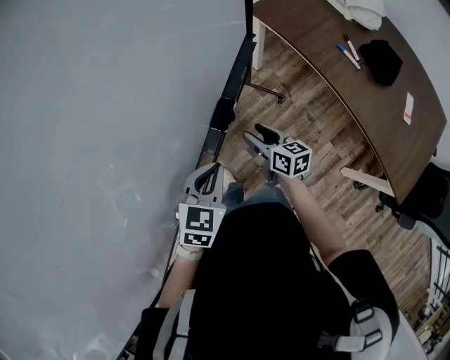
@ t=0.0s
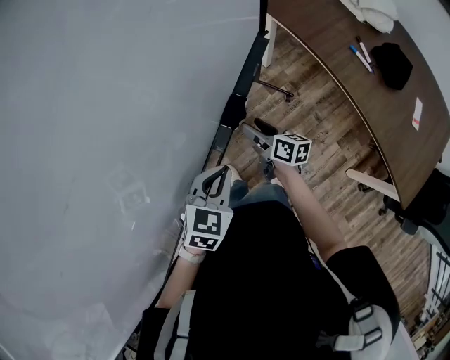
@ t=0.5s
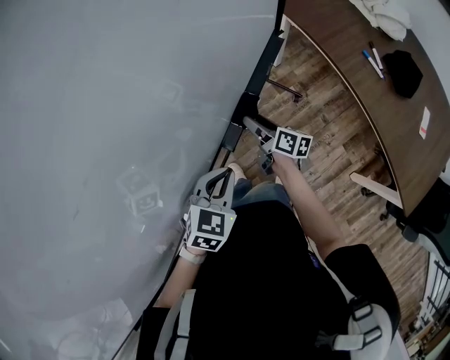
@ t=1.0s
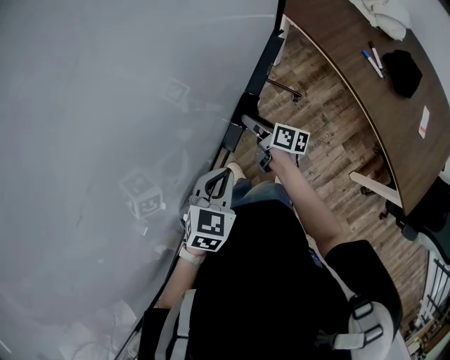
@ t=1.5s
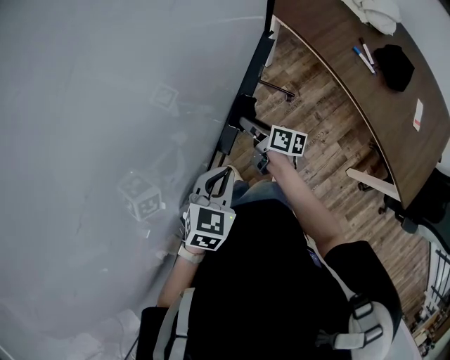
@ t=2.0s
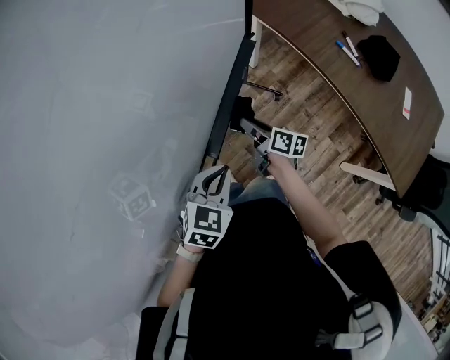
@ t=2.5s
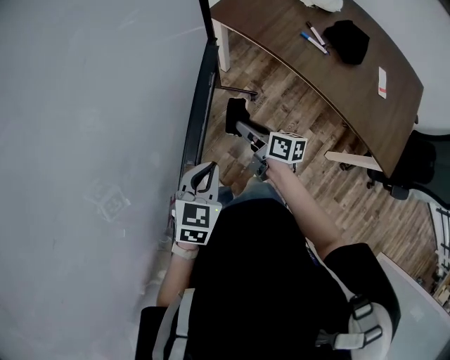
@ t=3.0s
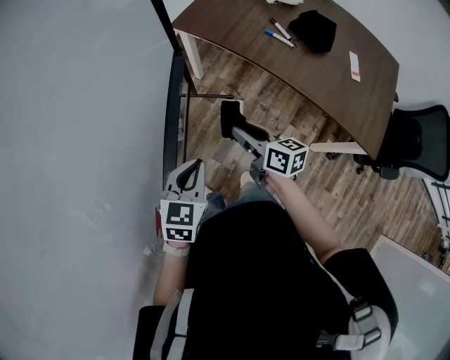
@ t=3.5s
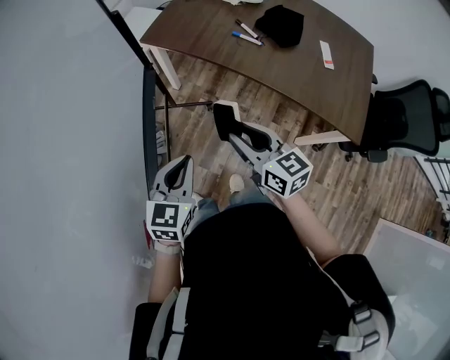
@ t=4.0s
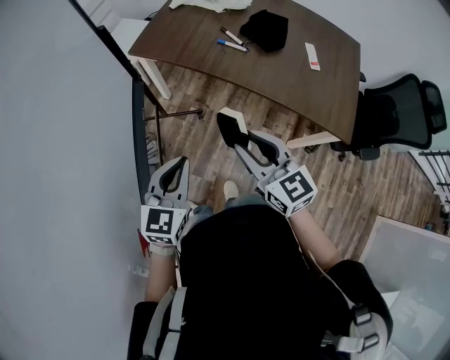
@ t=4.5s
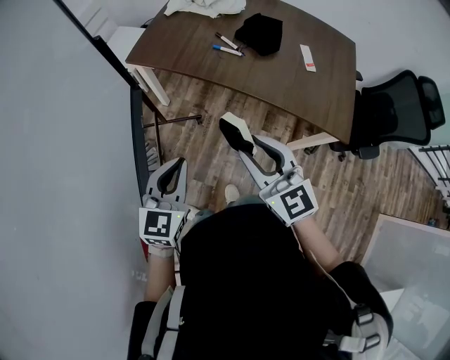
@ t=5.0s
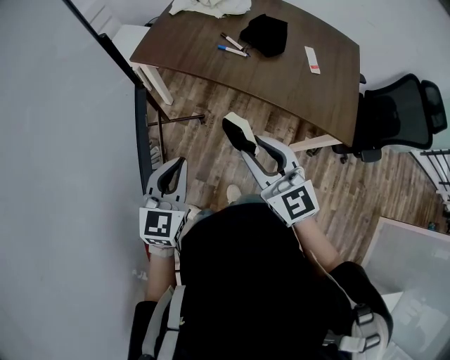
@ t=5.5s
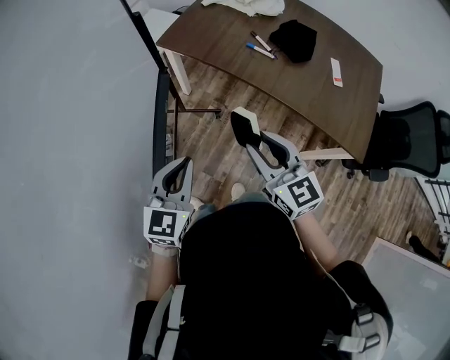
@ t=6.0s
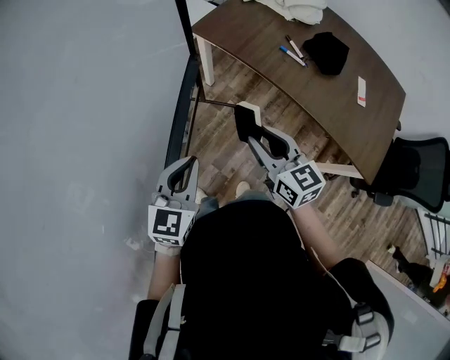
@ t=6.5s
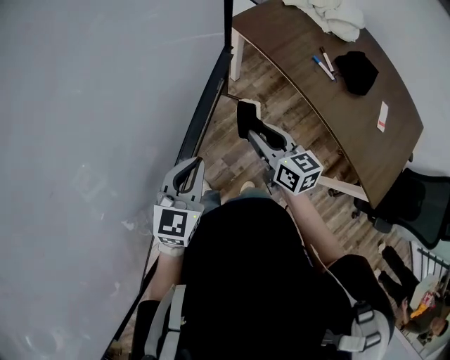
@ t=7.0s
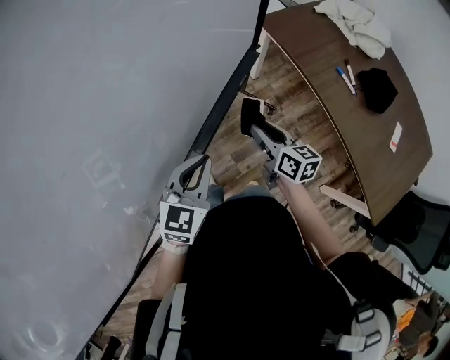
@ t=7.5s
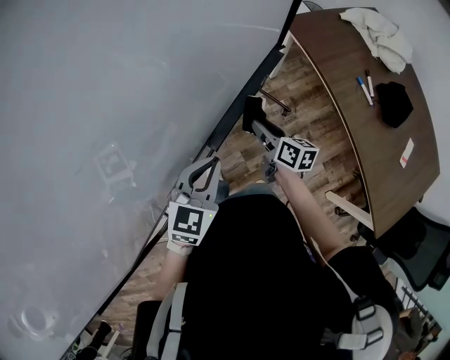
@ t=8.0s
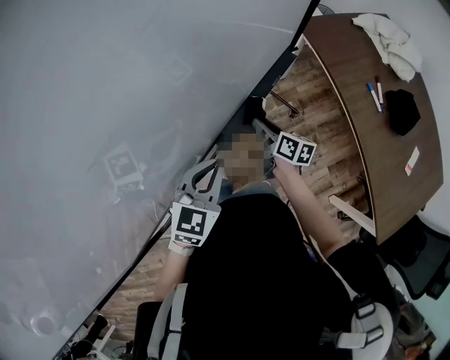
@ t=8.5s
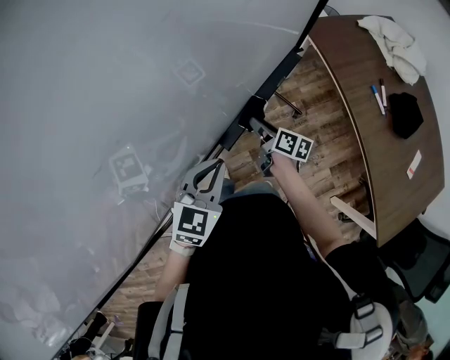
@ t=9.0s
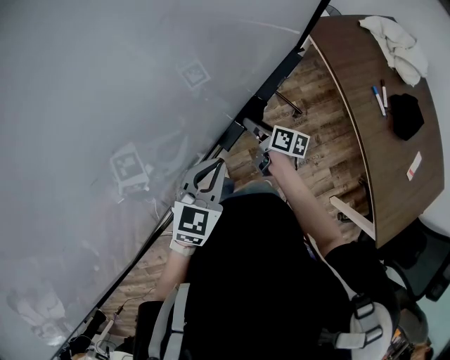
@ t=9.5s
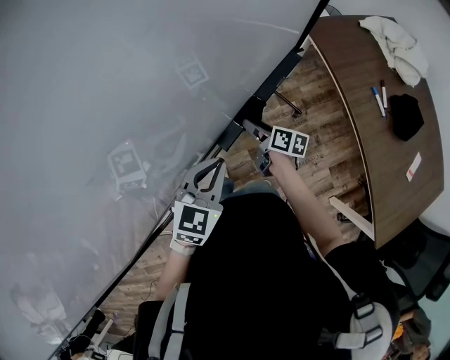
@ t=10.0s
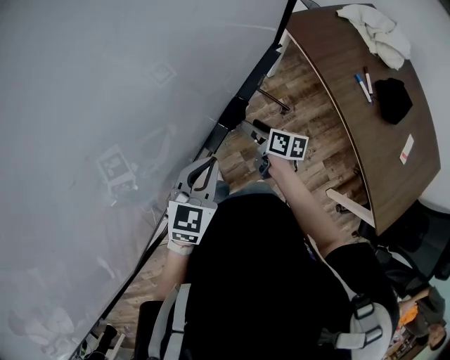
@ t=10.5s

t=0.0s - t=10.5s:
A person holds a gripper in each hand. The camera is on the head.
t=0.0s - t=2.0s: The right gripper goes some 10 cm to the left and forward, and swivels some 30 degrees.
t=2.0s - t=4.0s: The right gripper moves to the right and upward, approximately 30 cm, and rotates roughly 50 degrees. The left gripper shifts about 15 cm to the right, and swivels some 20 degrees.
t=4.0s - t=6.5s: The left gripper moves to the left, approximately 5 cm.
t=6.5s - t=8.5s: The right gripper shifts about 25 cm downward, to the left and forward, and turns by about 40 degrees; the left gripper travels to the left by roughly 10 cm, and turns by approximately 20 degrees.
t=8.5s - t=10.5s: The right gripper opens up.

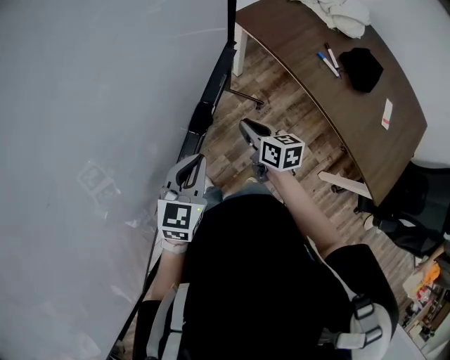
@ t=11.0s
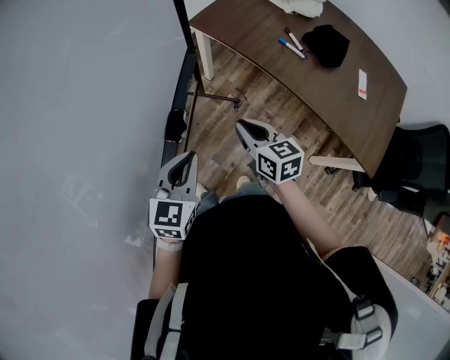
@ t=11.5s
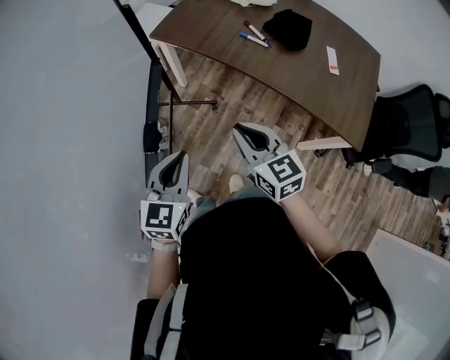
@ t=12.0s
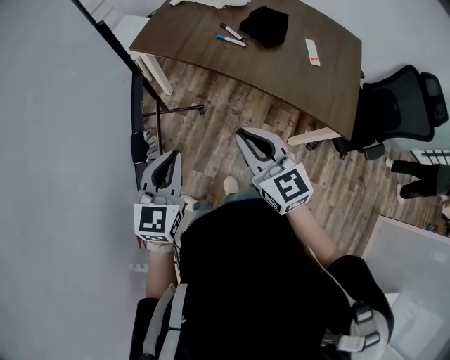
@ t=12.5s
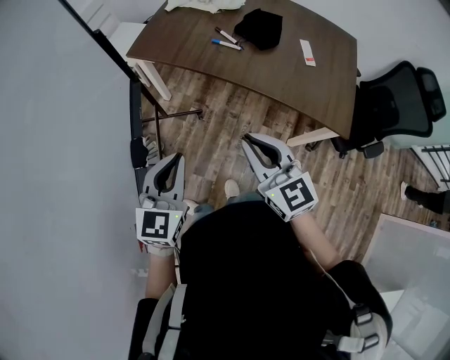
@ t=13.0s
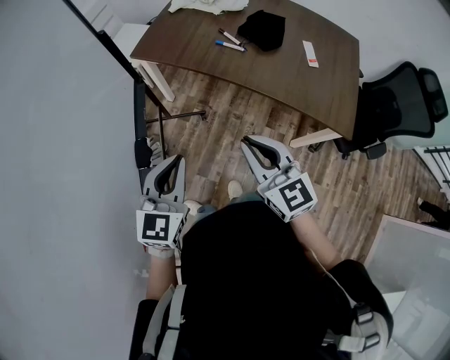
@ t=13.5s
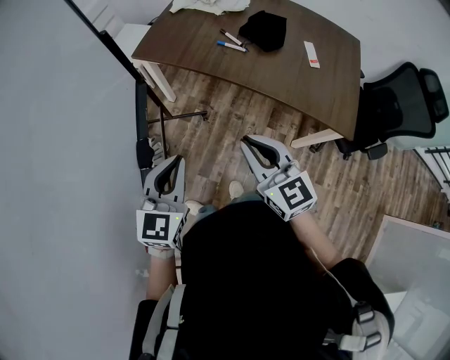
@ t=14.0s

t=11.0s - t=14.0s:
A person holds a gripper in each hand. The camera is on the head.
t=11.0s - t=12.5s: The left gripper moves approximately 15 cm, and turns by roughly 20 degrees, while the right gripper ends up roughly 25 cm from where it was, and swivels approximately 40 degrees.
t=12.5s - t=14.0s: The grippers stay close to where they were, moving slightly.

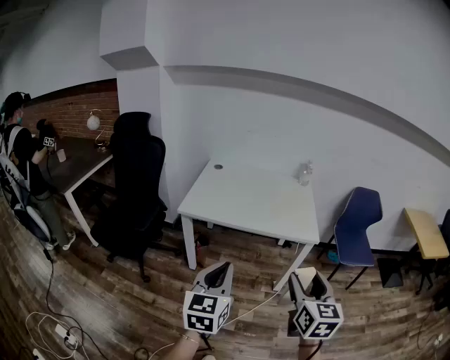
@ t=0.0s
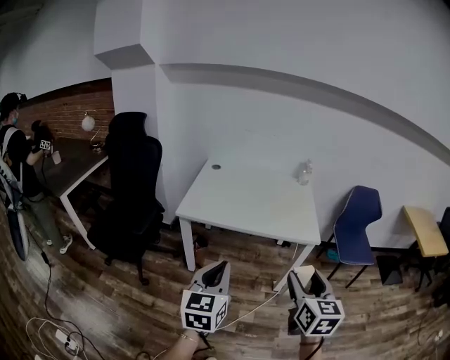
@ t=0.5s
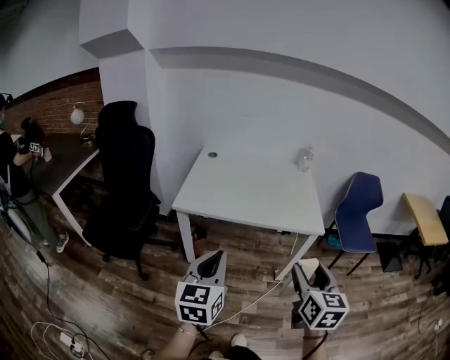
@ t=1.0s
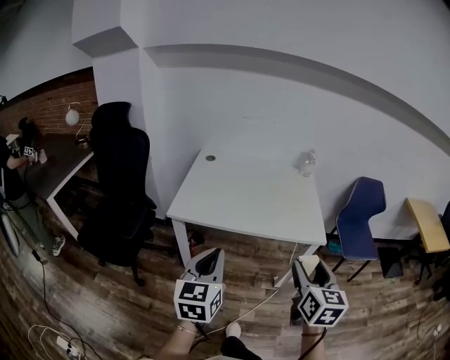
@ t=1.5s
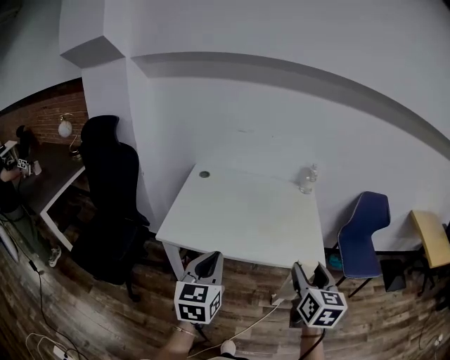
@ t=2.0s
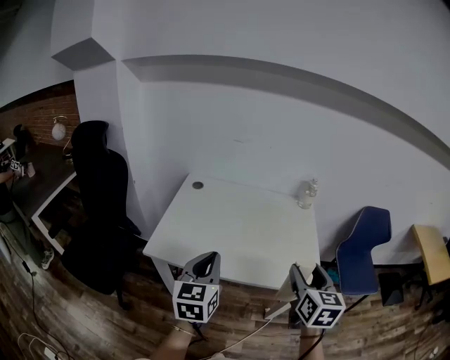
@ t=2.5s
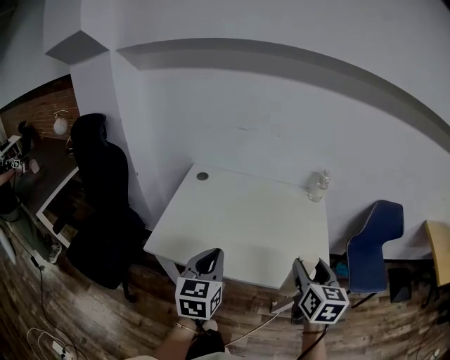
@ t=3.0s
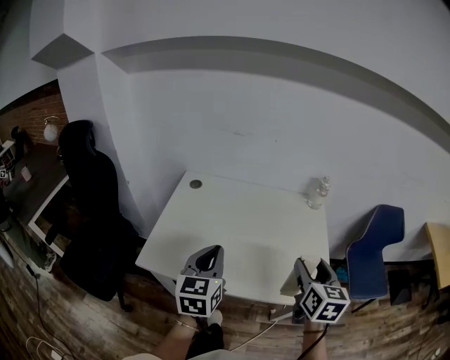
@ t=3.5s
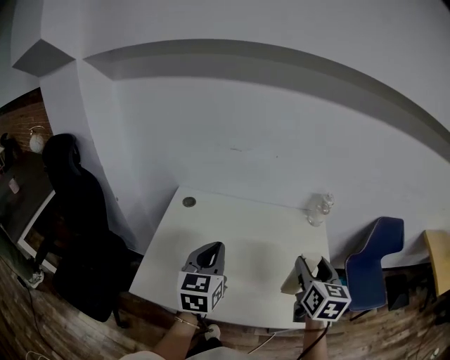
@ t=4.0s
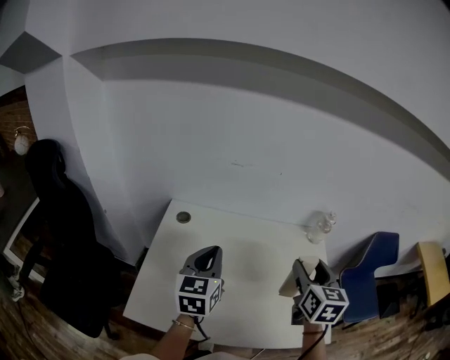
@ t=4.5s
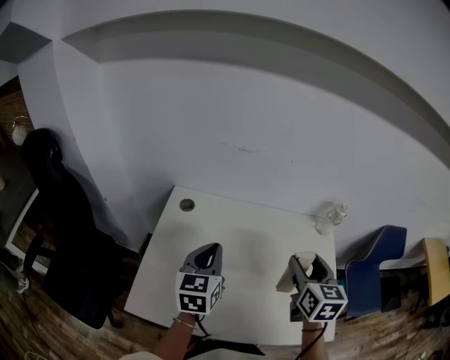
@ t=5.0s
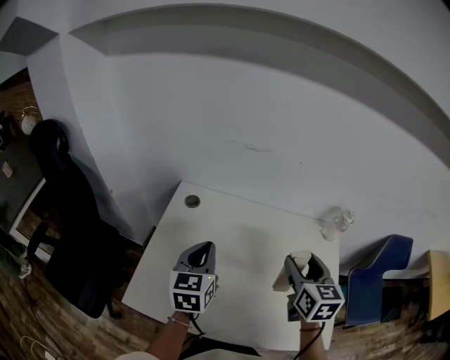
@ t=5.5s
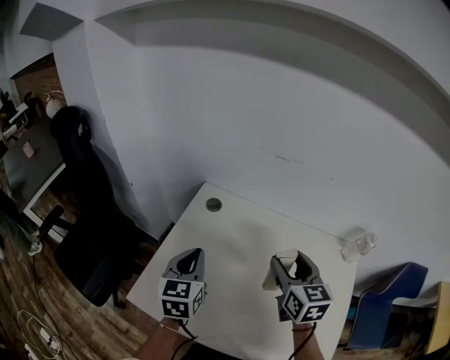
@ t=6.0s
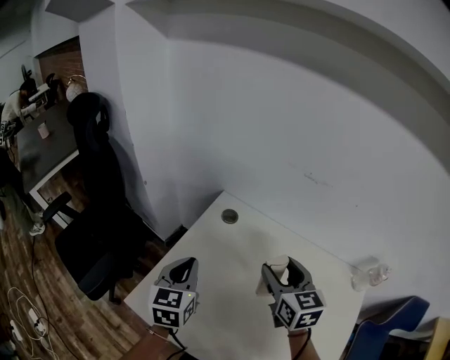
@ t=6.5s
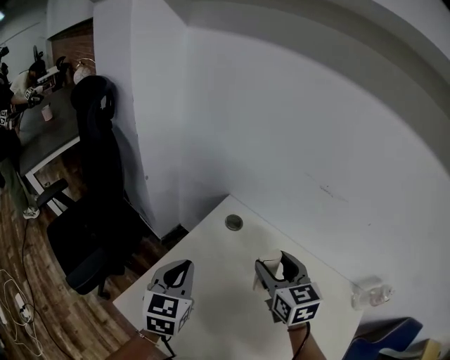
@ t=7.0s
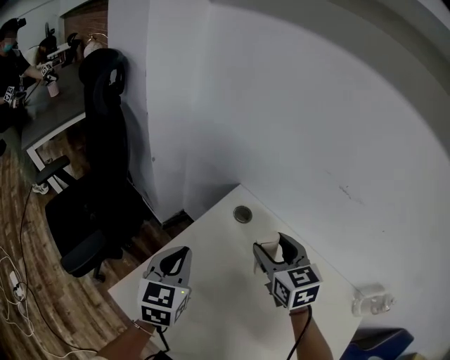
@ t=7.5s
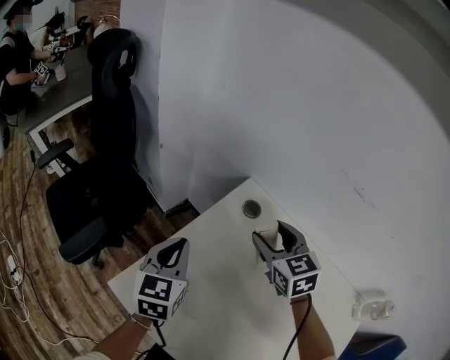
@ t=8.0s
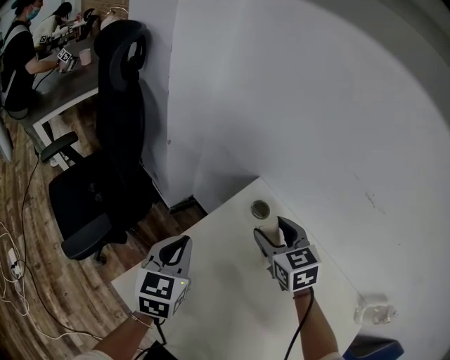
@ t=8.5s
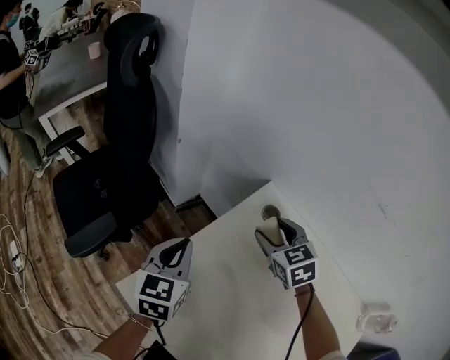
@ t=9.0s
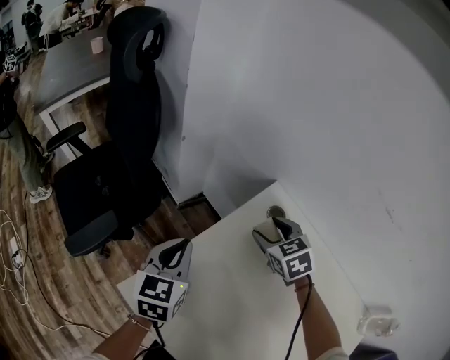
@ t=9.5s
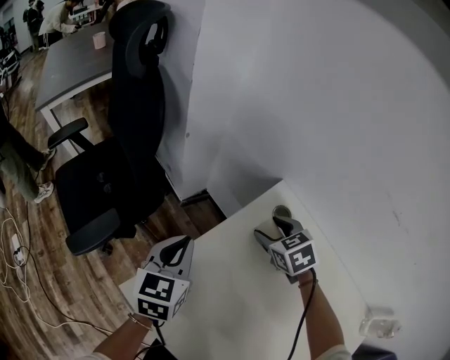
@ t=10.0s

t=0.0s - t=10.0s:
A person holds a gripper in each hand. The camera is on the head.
t=0.0s - t=2.0s: The grippers both shift forward by roughly 25 cm.
t=2.0s - t=4.0s: Both grippers move forward, approximately 30 cm.
t=4.0s - t=6.0s: The right gripper moves forward and to the left, approximately 25 cm, and changes its angle by about 30 degrees; the left gripper shifts approximately 15 cm to the left, forward and downward, and turns by roughly 20 degrees.
t=6.0s - t=8.0s: The right gripper goes about 25 cm forward, to the left and downward, and changes its angle by roughly 40 degrees, while the left gripper shifts approximately 15 cm to the left, downward and forward.
t=8.0s - t=10.0s: The right gripper goes roughly 10 cm downward and forward, and swivels some 20 degrees. Meanwhile the left gripper moves some 5 cm.

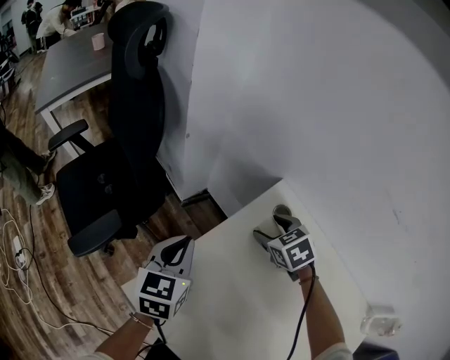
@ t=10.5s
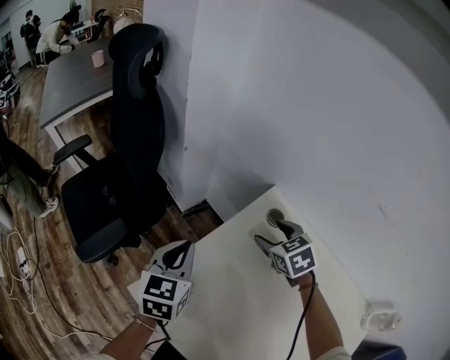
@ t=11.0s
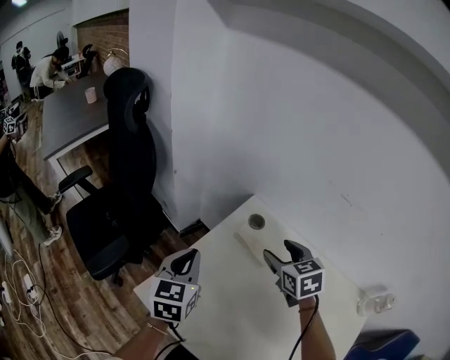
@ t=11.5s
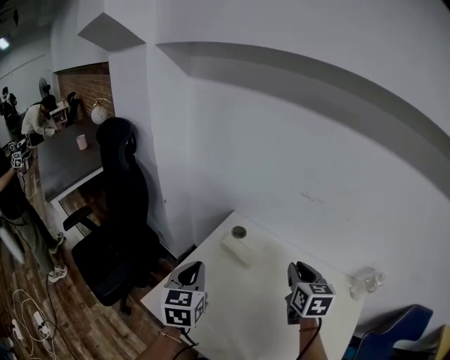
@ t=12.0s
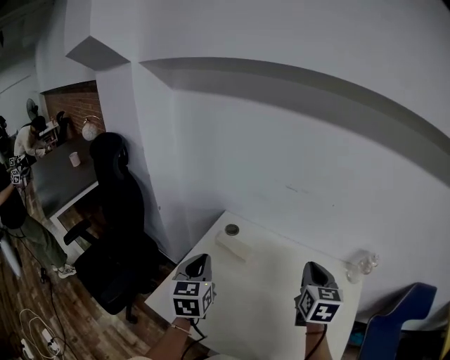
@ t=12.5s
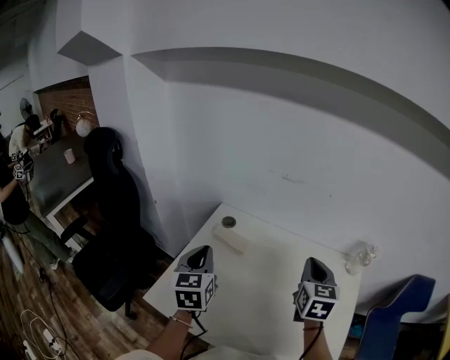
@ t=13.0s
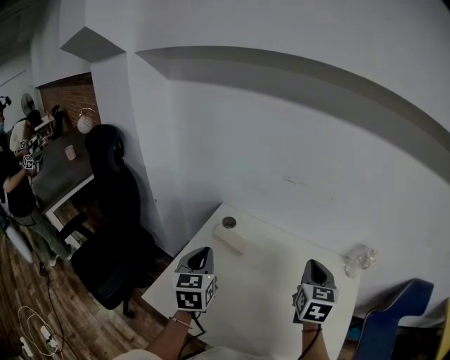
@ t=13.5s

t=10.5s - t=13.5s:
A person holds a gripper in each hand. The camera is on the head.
t=10.5s - t=12.0s: The right gripper moves backward, upward and to the right, roughly 35 cm, angles its fingers upward, by about 30 degrees, and closes up. Meanwhile the left gripper moves upward, backward and to the right, roughly 15 cm.
t=12.0s - t=13.5s: The right gripper travels to the right and backward by roughly 10 cm.
